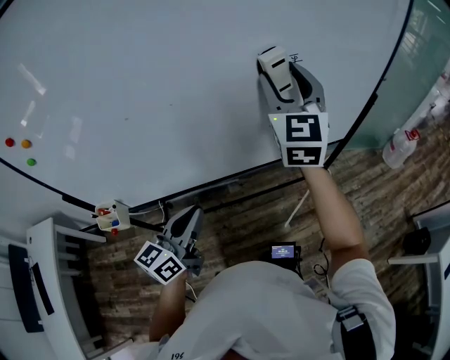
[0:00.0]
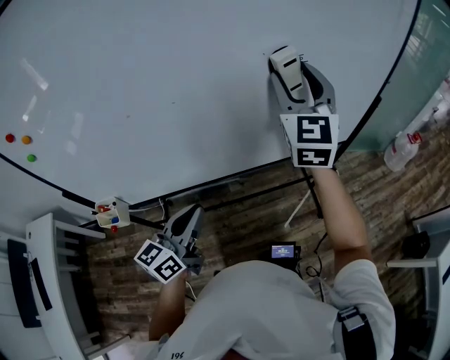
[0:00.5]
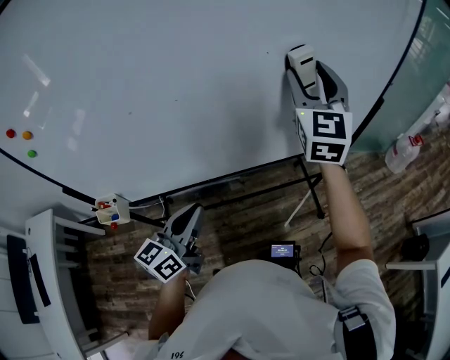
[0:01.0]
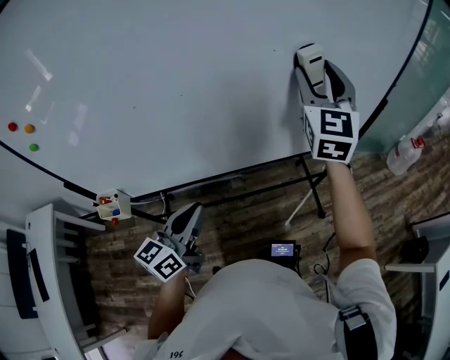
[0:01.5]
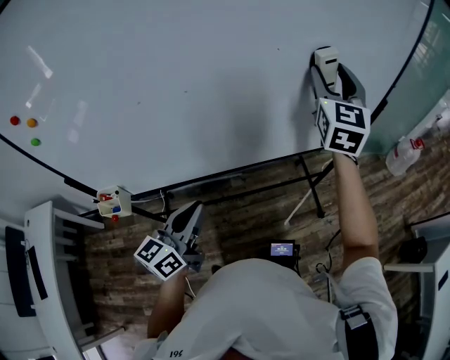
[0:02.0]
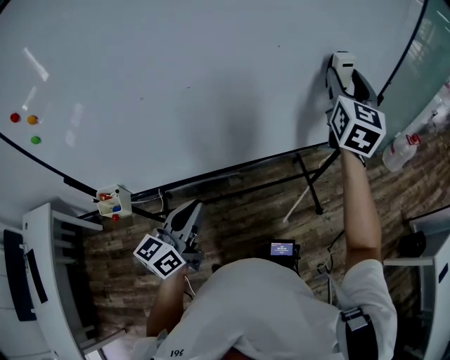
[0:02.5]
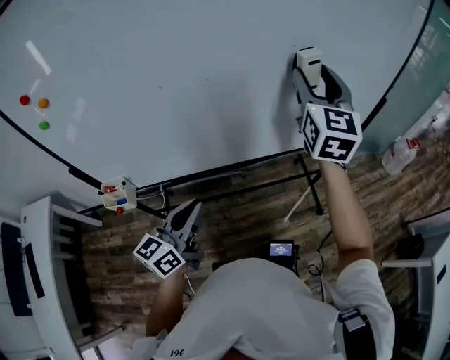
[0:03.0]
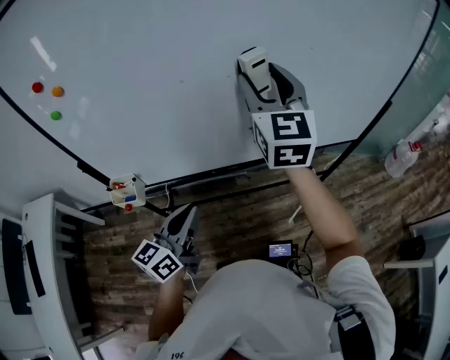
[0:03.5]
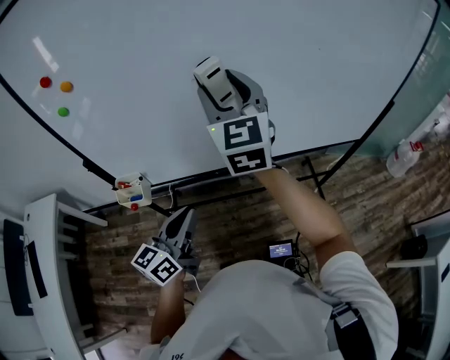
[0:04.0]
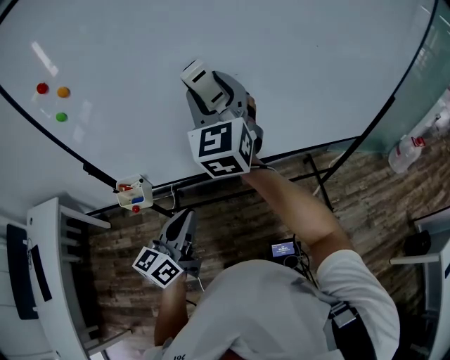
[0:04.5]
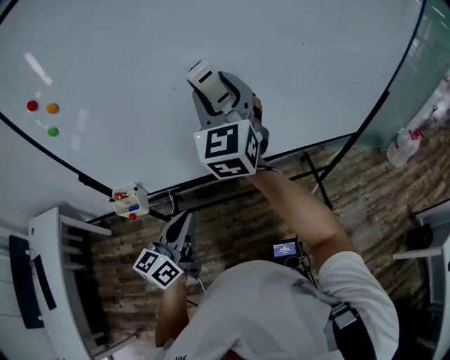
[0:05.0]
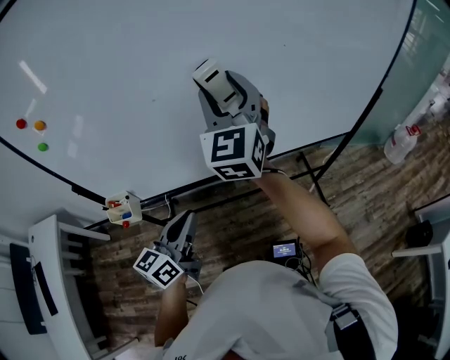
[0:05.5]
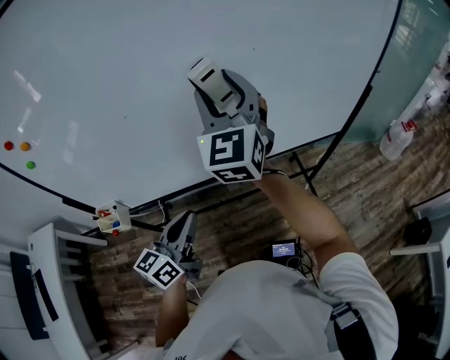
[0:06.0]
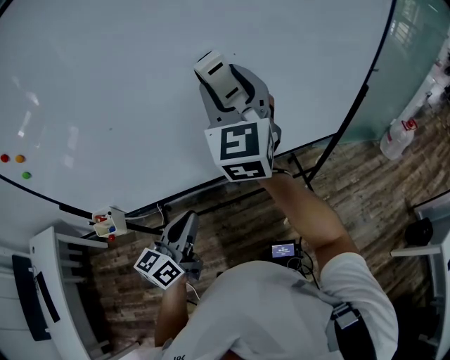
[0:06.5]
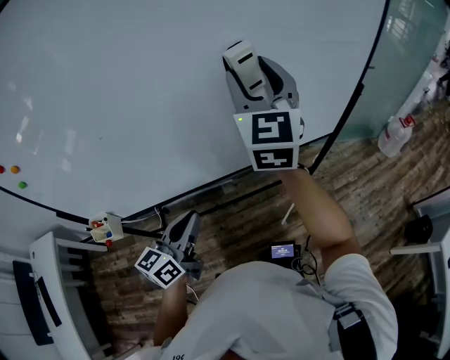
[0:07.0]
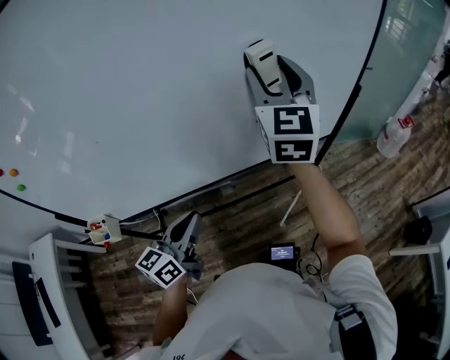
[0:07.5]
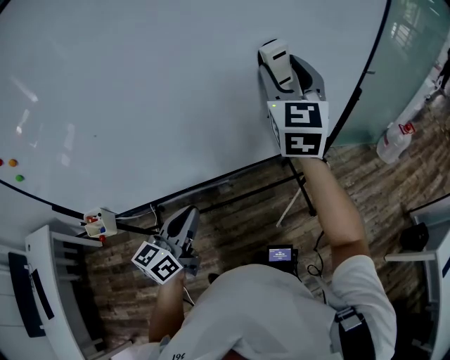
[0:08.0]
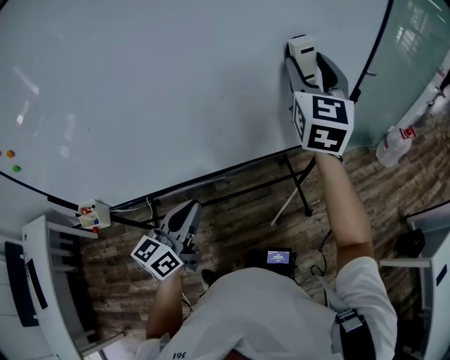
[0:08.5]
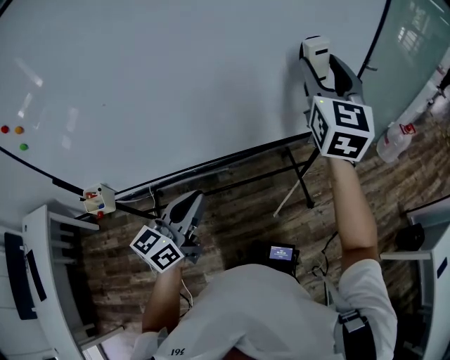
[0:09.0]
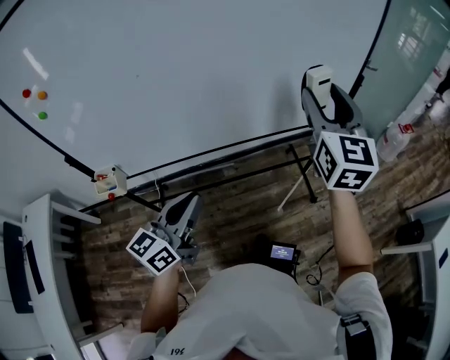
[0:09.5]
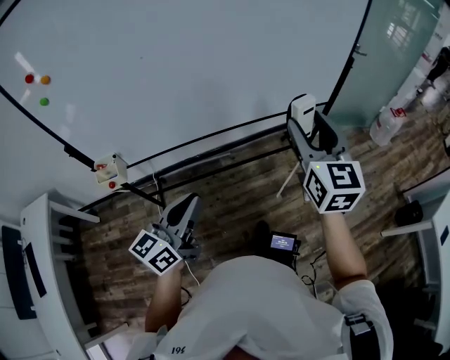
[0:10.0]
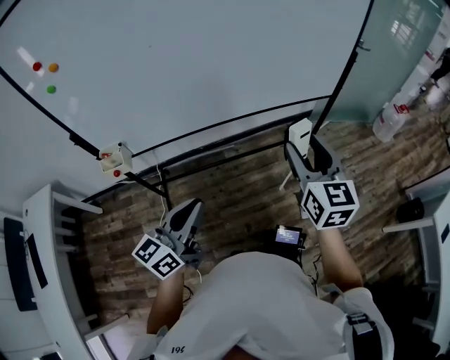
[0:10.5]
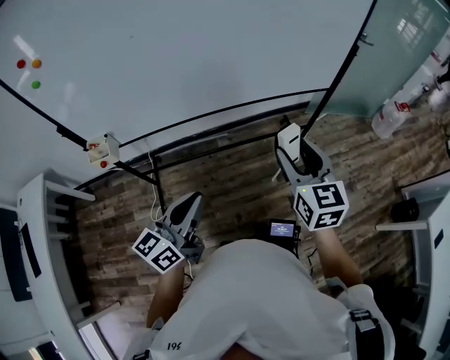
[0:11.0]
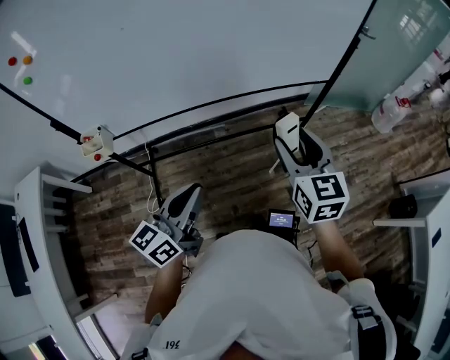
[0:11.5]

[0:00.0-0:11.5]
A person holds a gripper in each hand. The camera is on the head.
0:00.0 to 0:02.0: The right gripper moves to the right, some 10 cm.
0:02.0 to 0:04.0: The left gripper moves to the left and backward, approximately 15 cm; the right gripper moves to the left and backward, approximately 40 cm, and changes its angle by roughly 30 degrees.
0:04.0 to 0:06.0: The left gripper travels to the right and forward by about 15 cm. Meanwhile the right gripper moves to the right, approximately 15 cm.
0:06.0 to 0:07.5: The right gripper moves to the right and forward, about 20 cm. The left gripper heads to the right, covering some 5 cm.
0:07.5 to 0:09.5: The right gripper shifts roughly 20 cm backward and to the right. Meanwhile the left gripper moves backward, approximately 15 cm.
0:09.5 to 0:11.5: The right gripper heads downward and backward, covering some 25 cm, and turns by about 20 degrees; the left gripper heads backward, to the right and downward, covering roughly 10 cm.

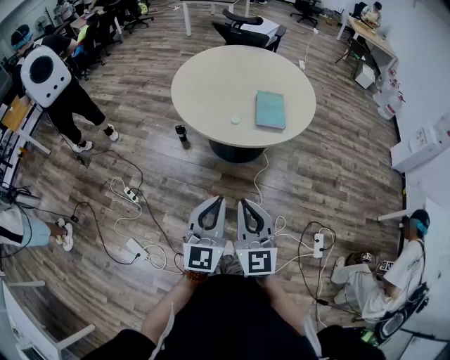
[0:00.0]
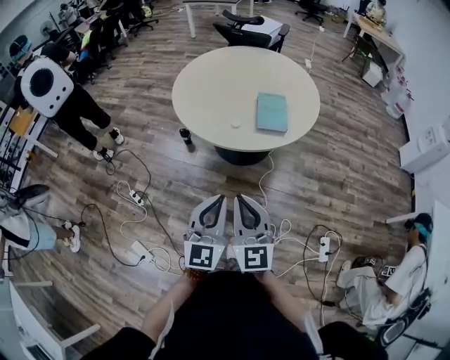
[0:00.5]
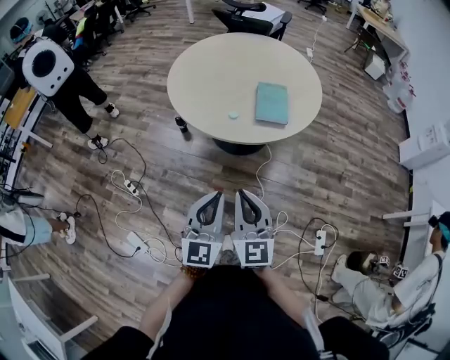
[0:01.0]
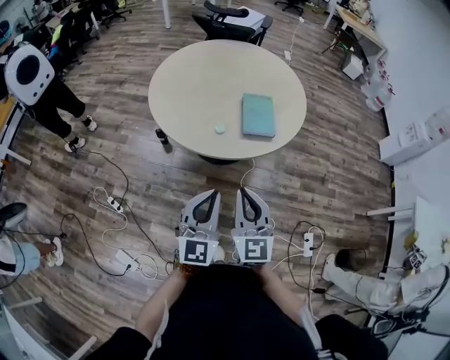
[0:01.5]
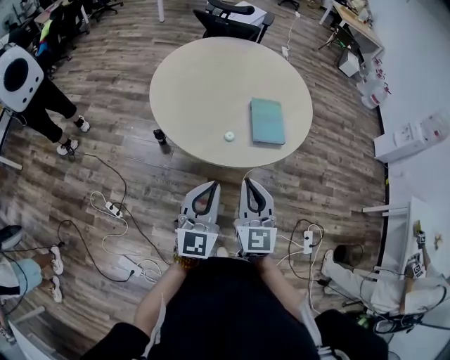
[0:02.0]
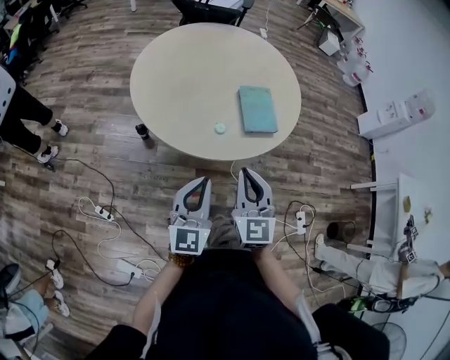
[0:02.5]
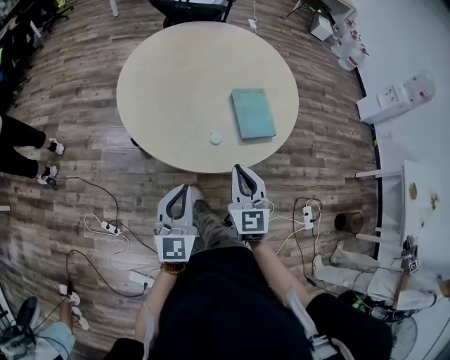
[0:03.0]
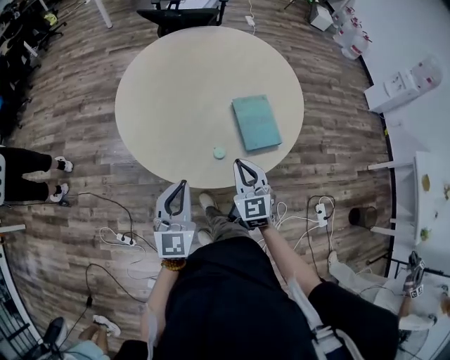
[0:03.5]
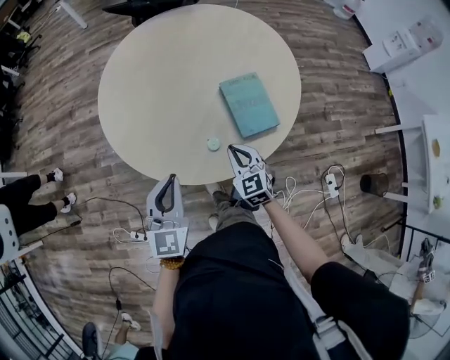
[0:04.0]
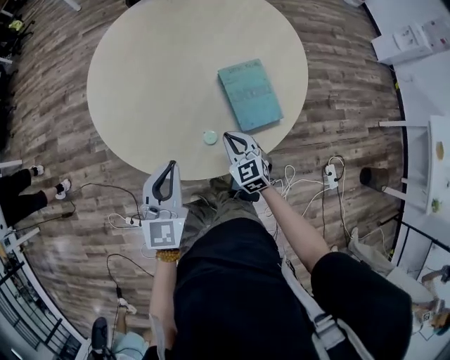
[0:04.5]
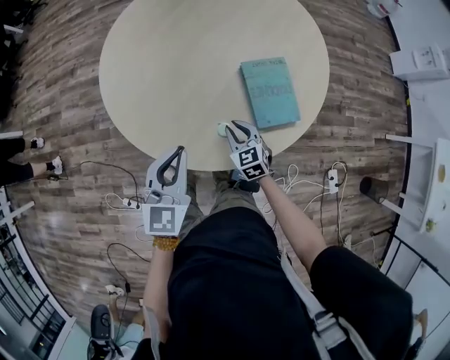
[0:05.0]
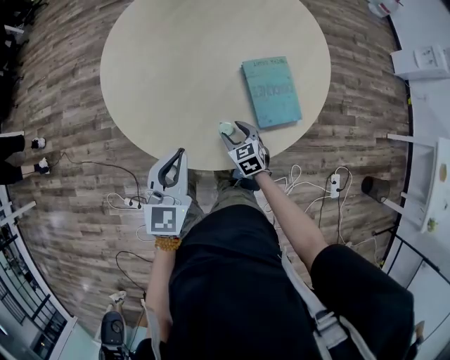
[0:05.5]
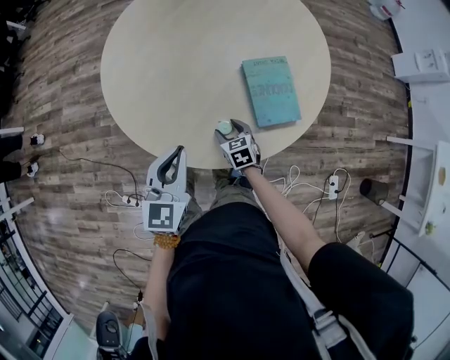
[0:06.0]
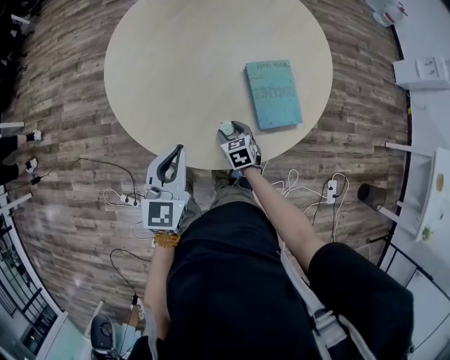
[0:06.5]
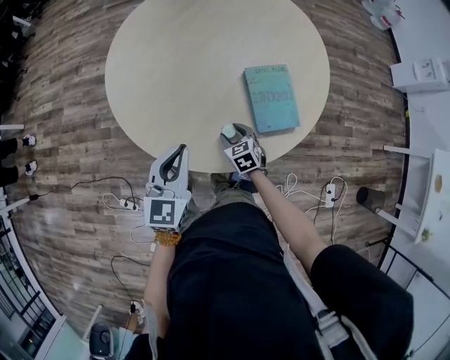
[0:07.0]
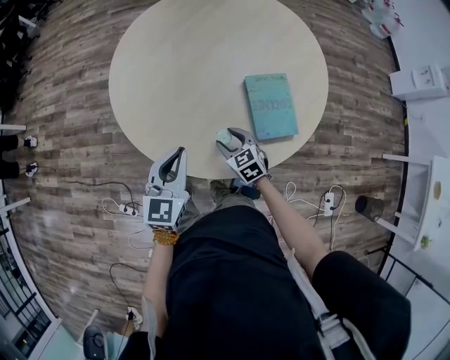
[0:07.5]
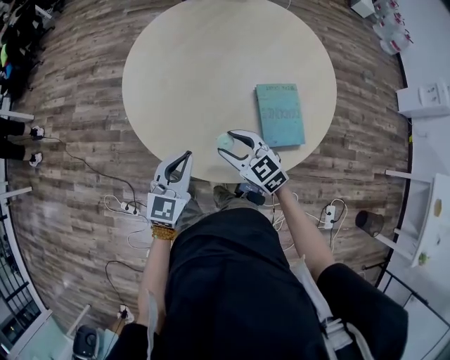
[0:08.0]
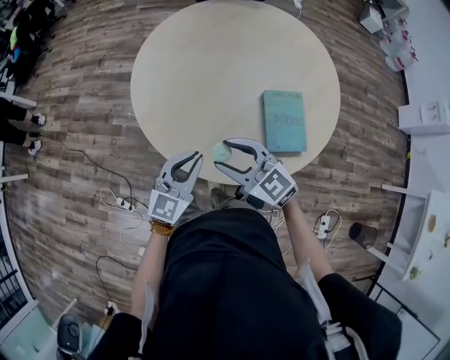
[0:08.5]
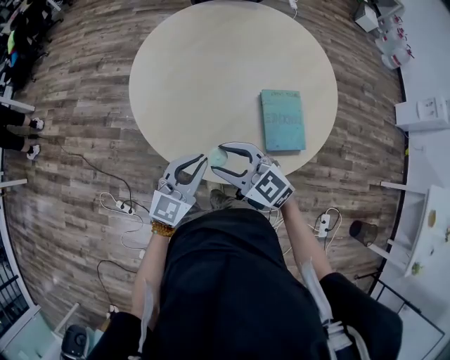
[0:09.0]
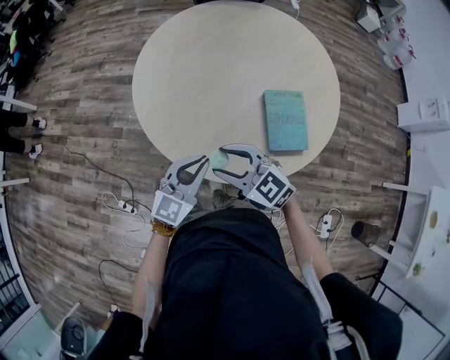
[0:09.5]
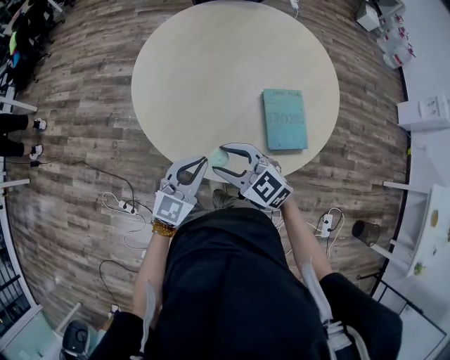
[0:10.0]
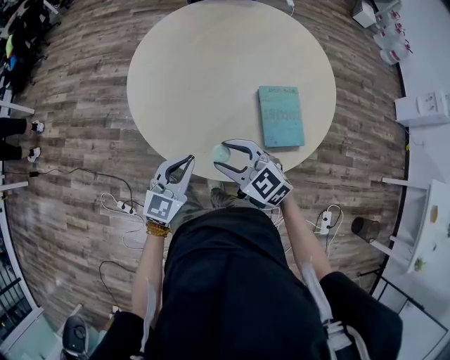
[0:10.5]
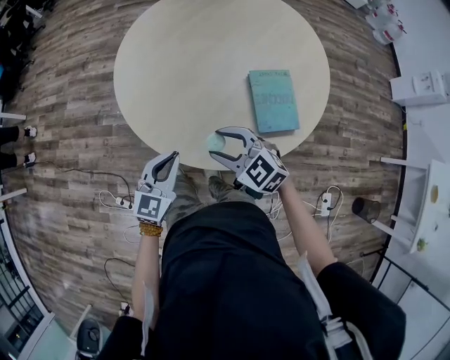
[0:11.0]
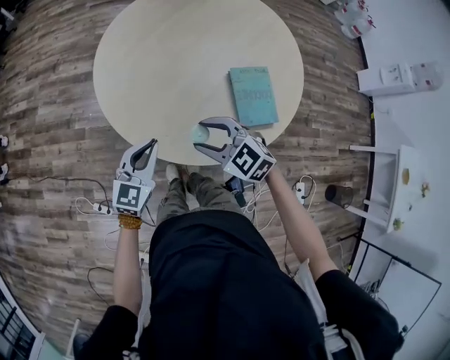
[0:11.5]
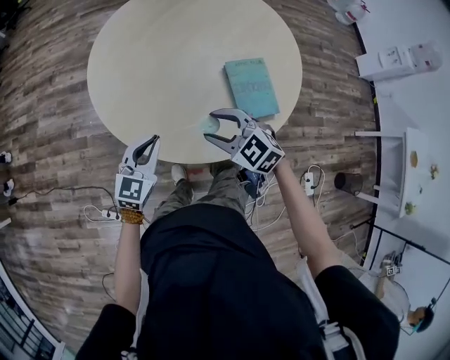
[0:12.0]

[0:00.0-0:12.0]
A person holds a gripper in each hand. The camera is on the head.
0:00.0 to 0:02.0: The two grippers go approximately 25 cm forward.
0:02.0 to 0:04.0: The left gripper goes about 25 cm forward. The right gripper goes approximately 35 cm forward and downward, and swivels some 20 degrees.
0:04.0 to 0:06.0: The right gripper travels downward by approximately 20 cm, swivels about 30 degrees, and opens its fingers. Meanwhile the left gripper goes about 5 cm downward.
0:06.0 to 0:08.0: The right gripper is displaced upward by roughly 20 cm, and turns by roughly 40 degrees.
0:08.0 to 0:10.0: The right gripper shifts about 10 cm to the left and upward.
0:10.0 to 0:12.0: The left gripper is displaced to the left and forward by roughly 10 cm.

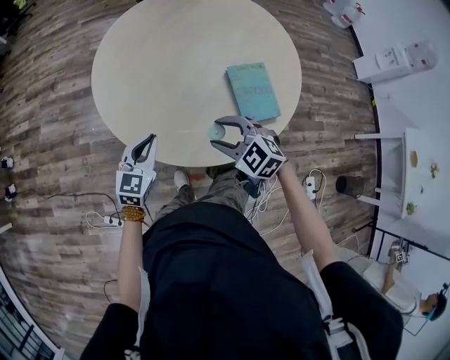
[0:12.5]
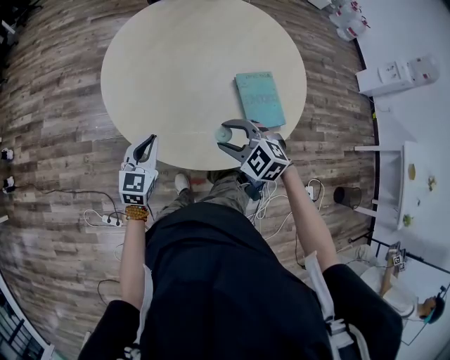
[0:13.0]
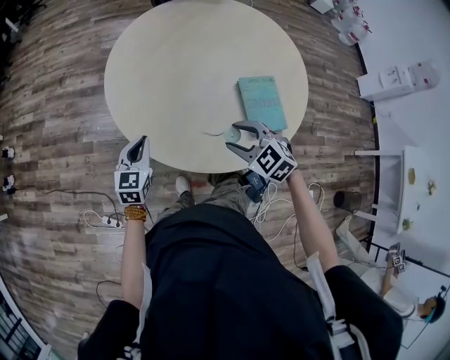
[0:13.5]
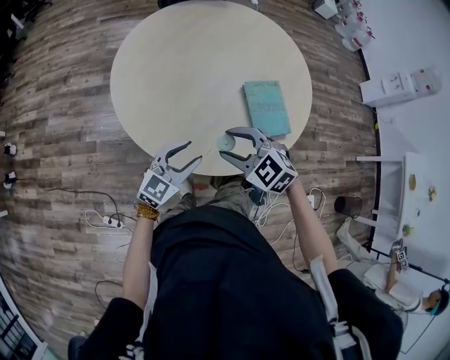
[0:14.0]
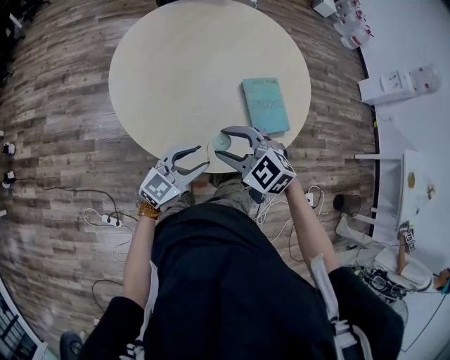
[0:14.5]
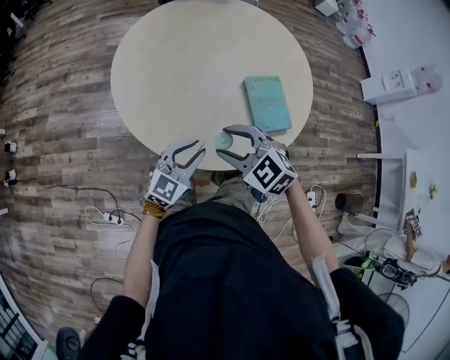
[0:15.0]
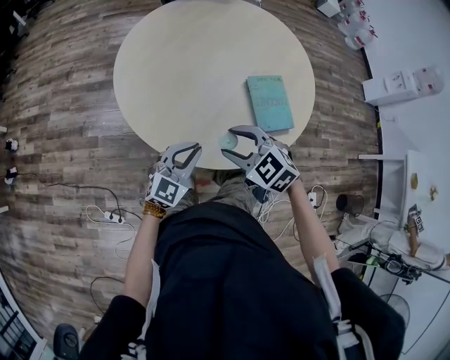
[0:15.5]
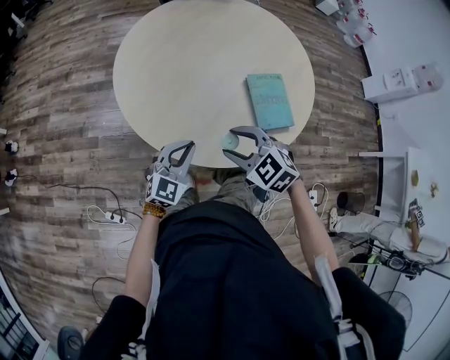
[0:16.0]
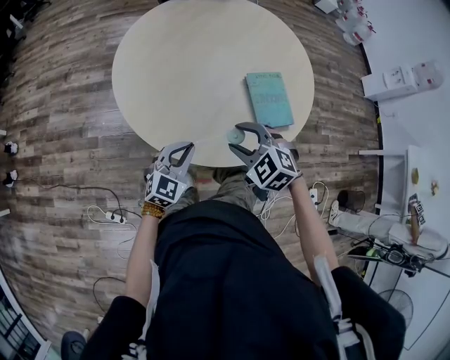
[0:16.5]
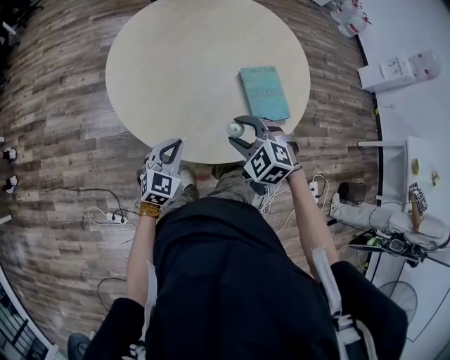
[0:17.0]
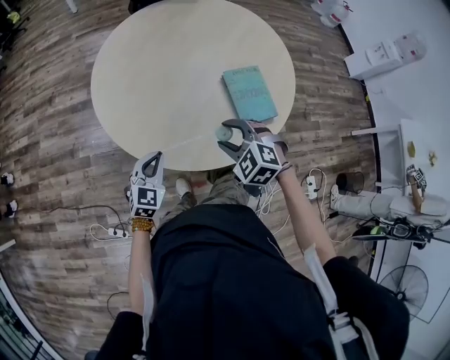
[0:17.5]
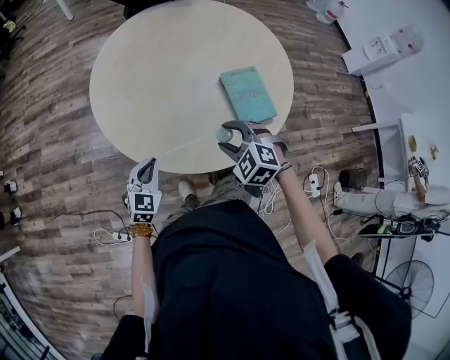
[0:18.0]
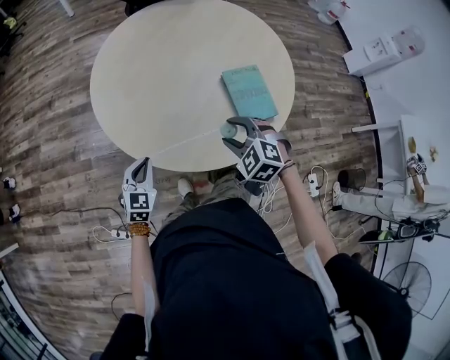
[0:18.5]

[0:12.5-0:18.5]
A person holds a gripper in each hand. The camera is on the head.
0:12.5 to 0:14.5: The left gripper heads to the right and backward, covering approximately 10 cm, changes its angle by about 30 degrees, and opens its fingers. The right gripper changes place by roughly 5 cm.
0:14.5 to 0:16.5: The left gripper ends up about 5 cm from where it was, turns by roughly 20 degrees, and closes.
0:16.5 to 0:18.5: The right gripper shifts by some 5 cm; the left gripper goes roughly 10 cm to the left.
